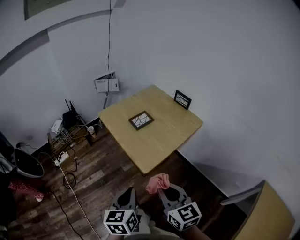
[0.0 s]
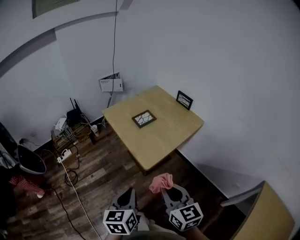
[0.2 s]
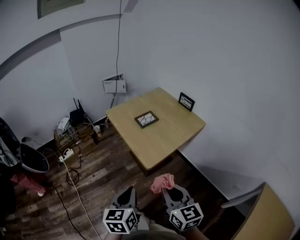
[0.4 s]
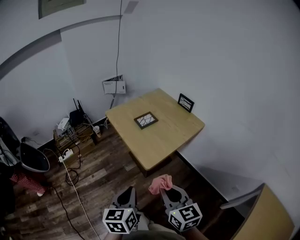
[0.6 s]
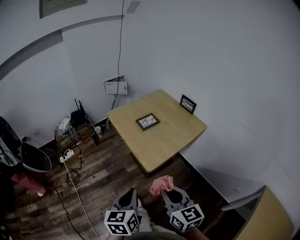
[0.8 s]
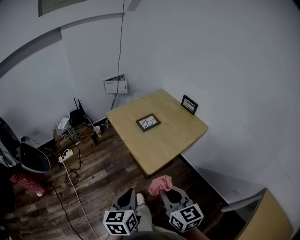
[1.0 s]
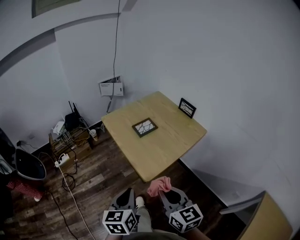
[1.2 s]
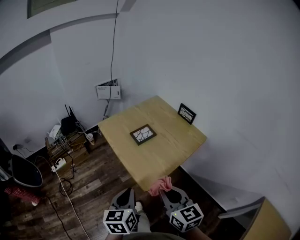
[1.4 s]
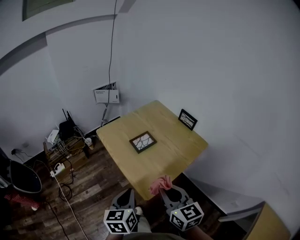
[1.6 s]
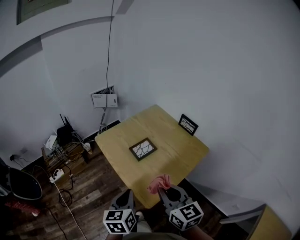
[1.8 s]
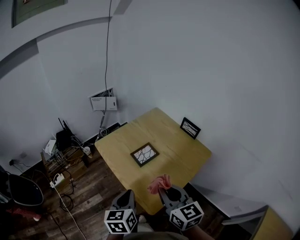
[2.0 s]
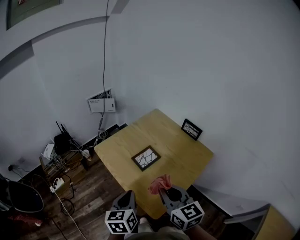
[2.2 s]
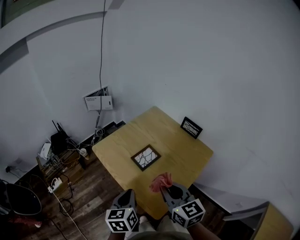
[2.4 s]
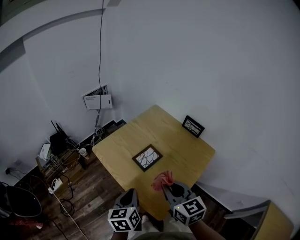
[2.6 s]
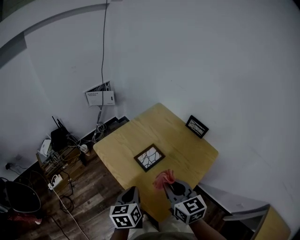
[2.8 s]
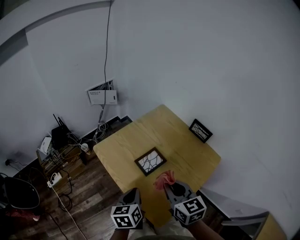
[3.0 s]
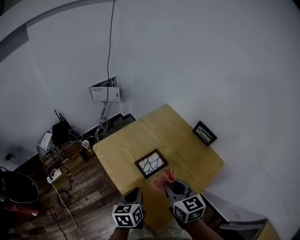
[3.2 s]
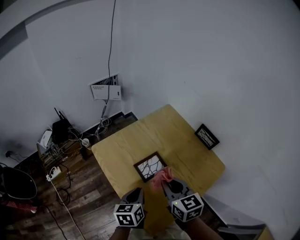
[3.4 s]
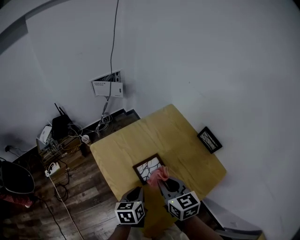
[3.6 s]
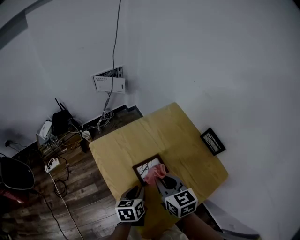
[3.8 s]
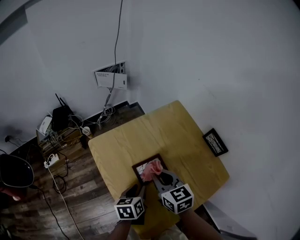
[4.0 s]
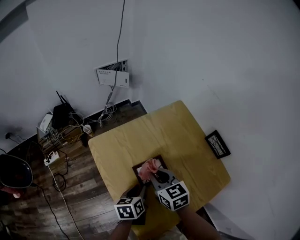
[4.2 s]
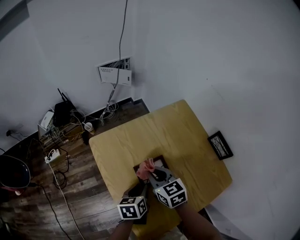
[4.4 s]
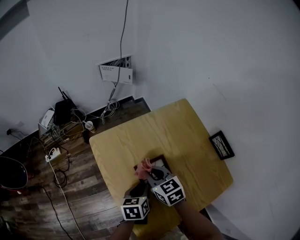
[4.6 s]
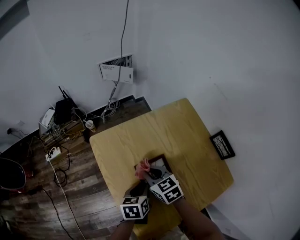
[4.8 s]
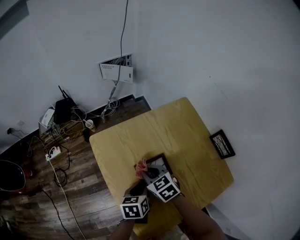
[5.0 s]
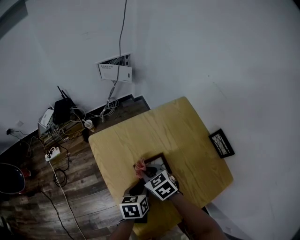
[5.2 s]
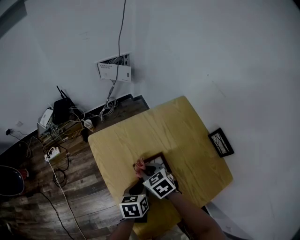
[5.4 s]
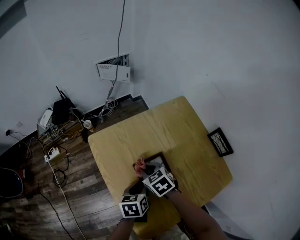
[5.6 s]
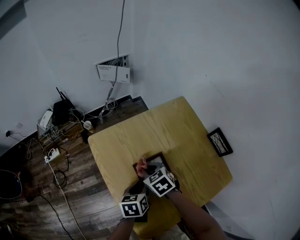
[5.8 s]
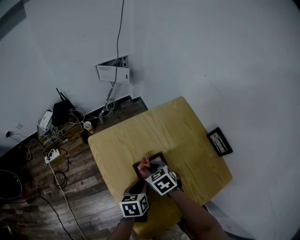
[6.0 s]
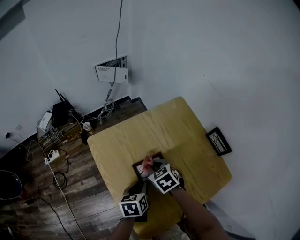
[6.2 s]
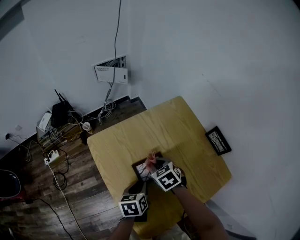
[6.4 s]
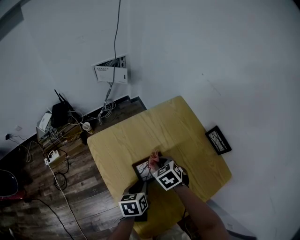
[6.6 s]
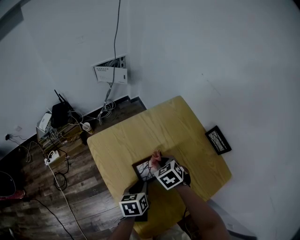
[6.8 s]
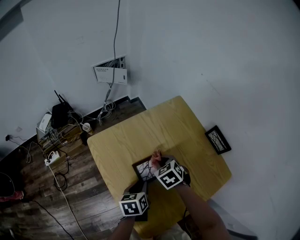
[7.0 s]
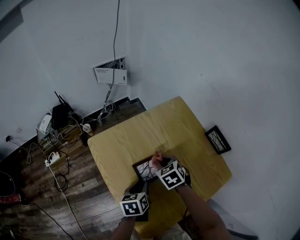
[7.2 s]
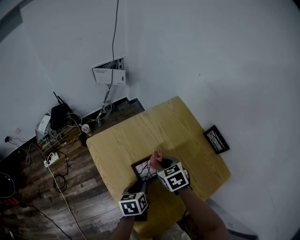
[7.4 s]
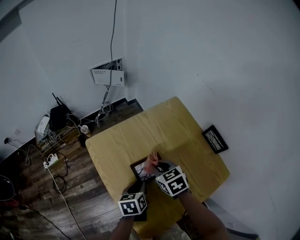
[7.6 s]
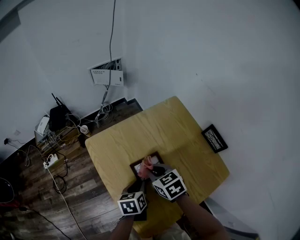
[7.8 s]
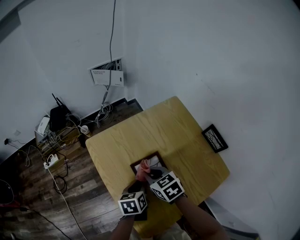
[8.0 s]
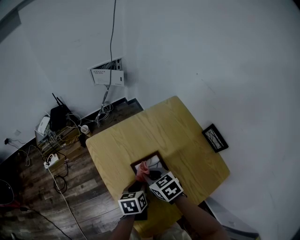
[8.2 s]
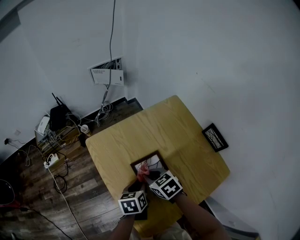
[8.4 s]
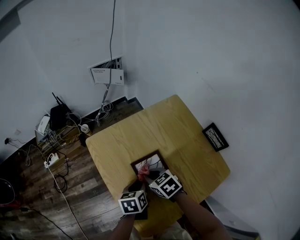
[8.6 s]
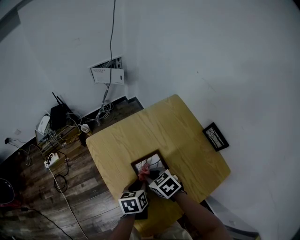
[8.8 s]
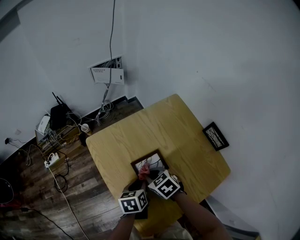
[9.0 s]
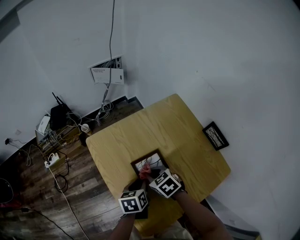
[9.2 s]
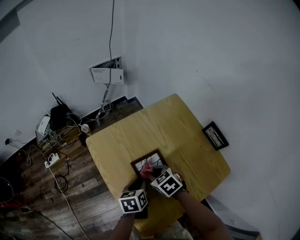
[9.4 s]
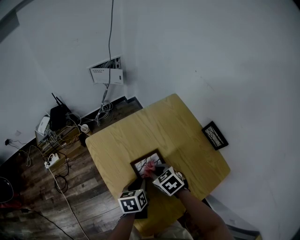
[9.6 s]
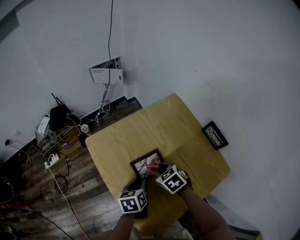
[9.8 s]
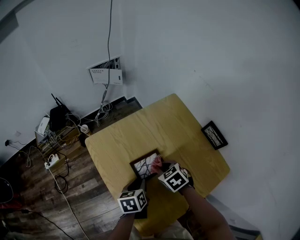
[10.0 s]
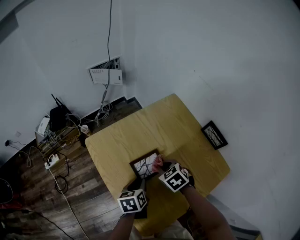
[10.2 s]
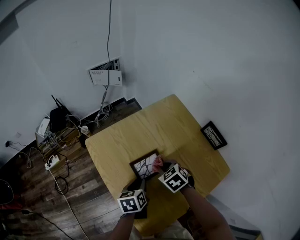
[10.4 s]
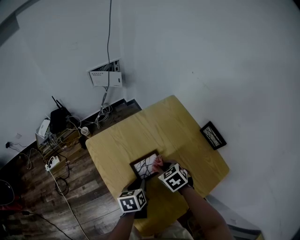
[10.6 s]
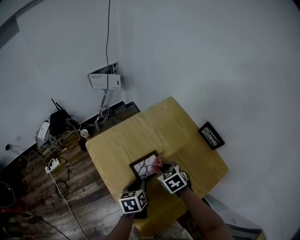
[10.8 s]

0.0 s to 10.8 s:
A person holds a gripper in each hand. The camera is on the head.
0.0 to 1.6 s: The two grippers go some 15 cm forward.
1.6 to 3.0 s: The right gripper is displaced forward by approximately 20 cm, while the left gripper moves forward and downward, some 20 cm.
3.0 to 4.6 s: The left gripper is displaced downward, forward and to the right by roughly 15 cm, and opens its fingers. The right gripper is displaced forward and downward by about 20 cm, and turns by about 30 degrees.
4.6 to 6.2 s: The right gripper moves roughly 5 cm, and swivels about 20 degrees.
6.2 to 7.8 s: The right gripper moves about 5 cm.
7.8 to 9.2 s: The right gripper ends up some 5 cm from where it was.
9.2 to 10.8 s: The right gripper travels to the right by approximately 5 cm.

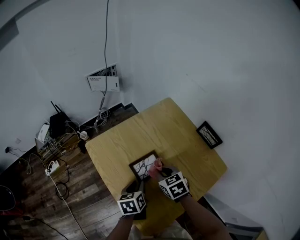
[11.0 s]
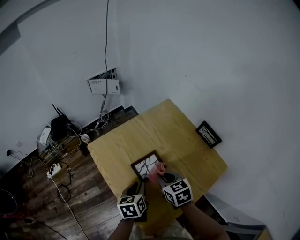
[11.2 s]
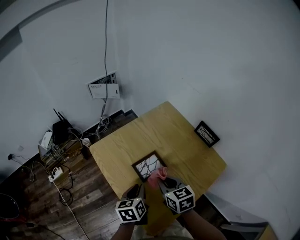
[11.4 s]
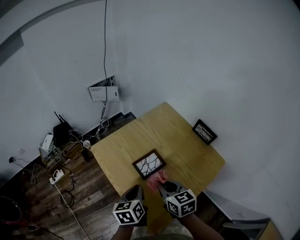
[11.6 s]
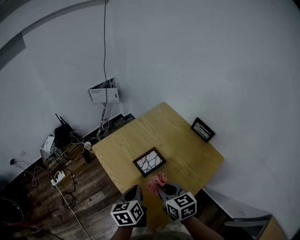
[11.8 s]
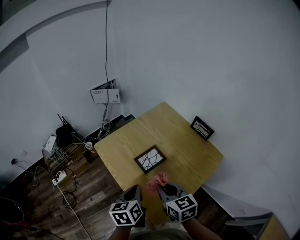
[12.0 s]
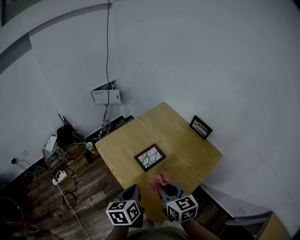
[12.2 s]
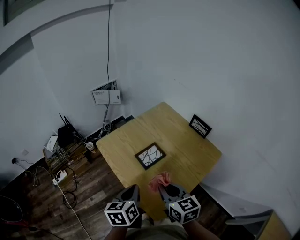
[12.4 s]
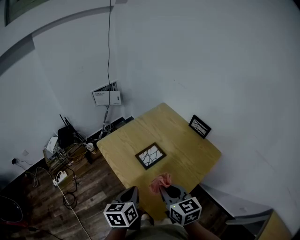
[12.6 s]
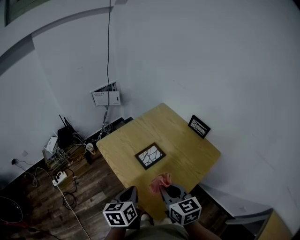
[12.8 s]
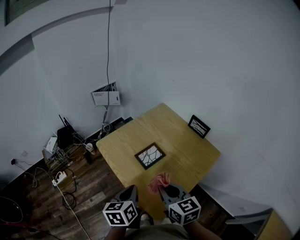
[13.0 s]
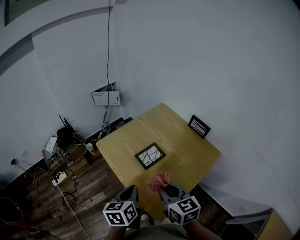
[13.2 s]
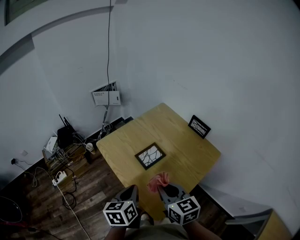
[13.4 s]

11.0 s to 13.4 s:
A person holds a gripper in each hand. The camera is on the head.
11.0 to 12.2 s: The left gripper travels upward and backward by about 15 cm, and closes up. The right gripper goes about 20 cm backward and upward, and rotates about 30 degrees.
12.2 to 13.4 s: The grippers stay close to where they were, moving slightly.

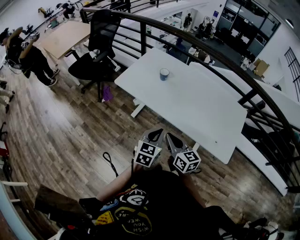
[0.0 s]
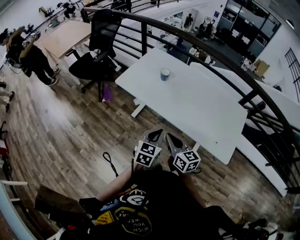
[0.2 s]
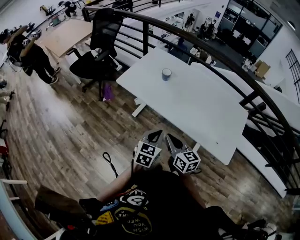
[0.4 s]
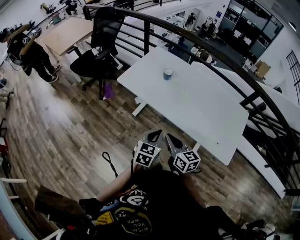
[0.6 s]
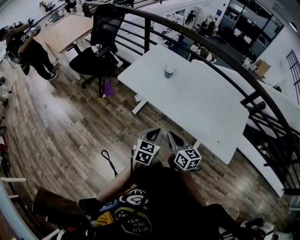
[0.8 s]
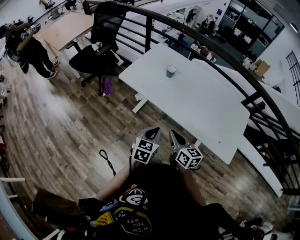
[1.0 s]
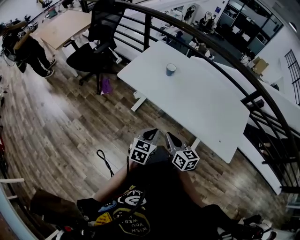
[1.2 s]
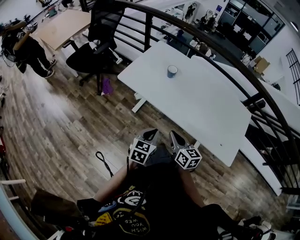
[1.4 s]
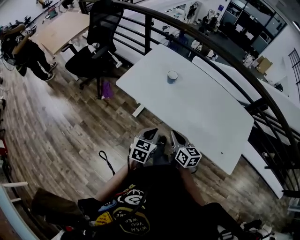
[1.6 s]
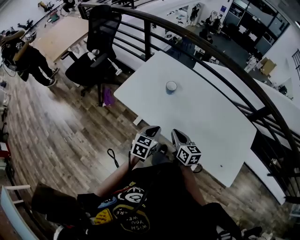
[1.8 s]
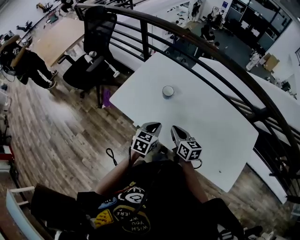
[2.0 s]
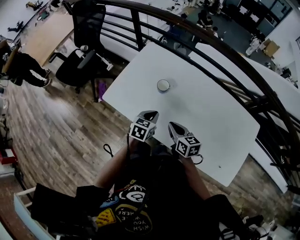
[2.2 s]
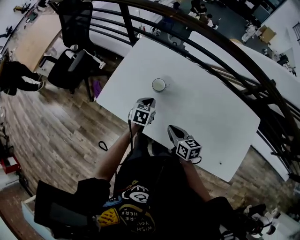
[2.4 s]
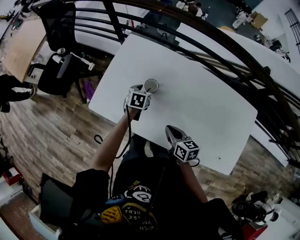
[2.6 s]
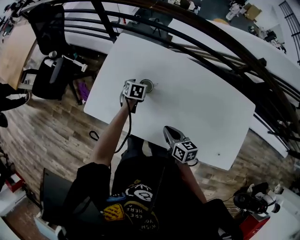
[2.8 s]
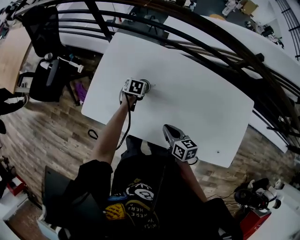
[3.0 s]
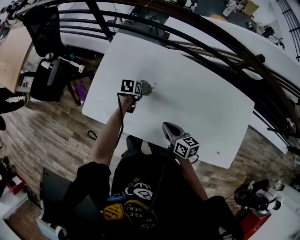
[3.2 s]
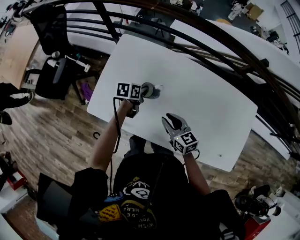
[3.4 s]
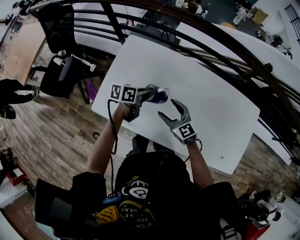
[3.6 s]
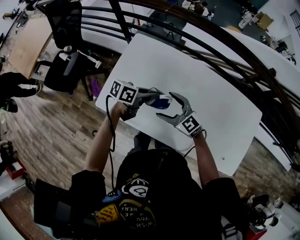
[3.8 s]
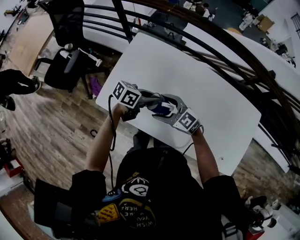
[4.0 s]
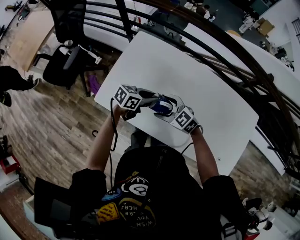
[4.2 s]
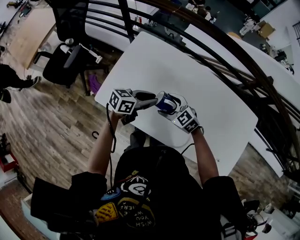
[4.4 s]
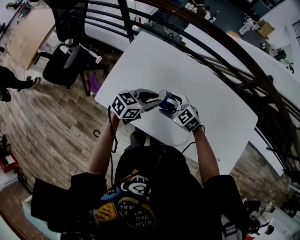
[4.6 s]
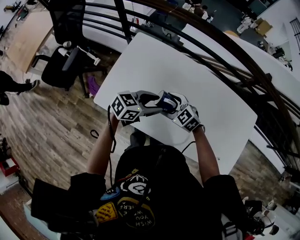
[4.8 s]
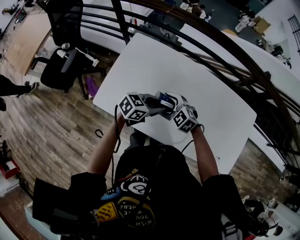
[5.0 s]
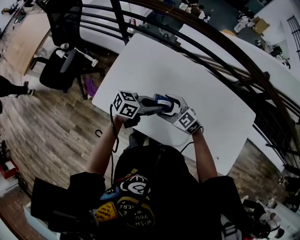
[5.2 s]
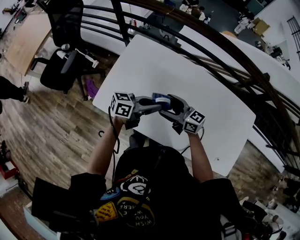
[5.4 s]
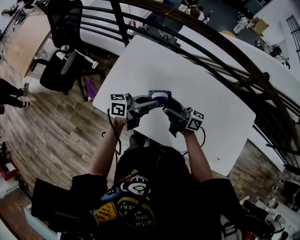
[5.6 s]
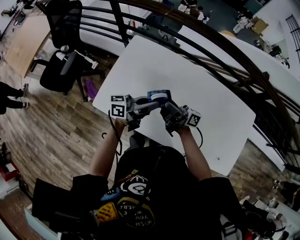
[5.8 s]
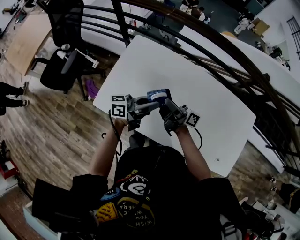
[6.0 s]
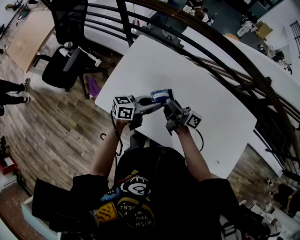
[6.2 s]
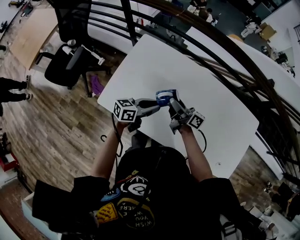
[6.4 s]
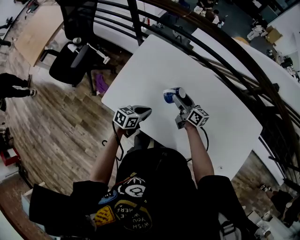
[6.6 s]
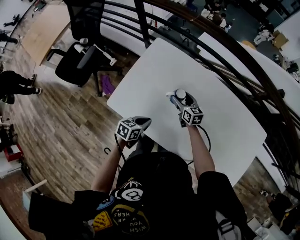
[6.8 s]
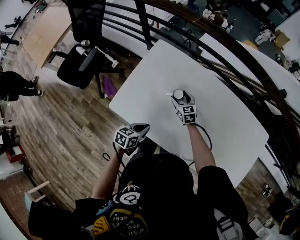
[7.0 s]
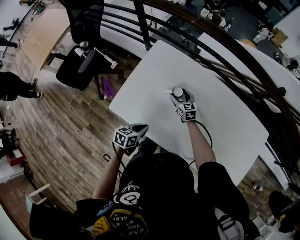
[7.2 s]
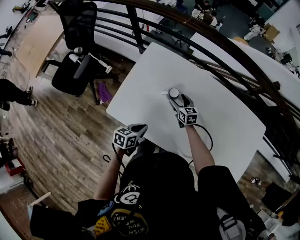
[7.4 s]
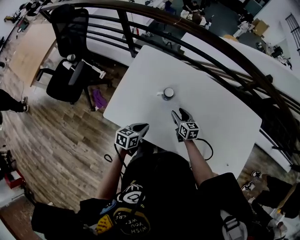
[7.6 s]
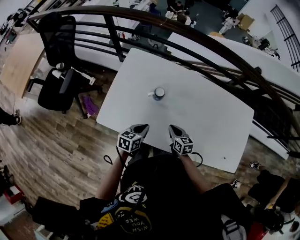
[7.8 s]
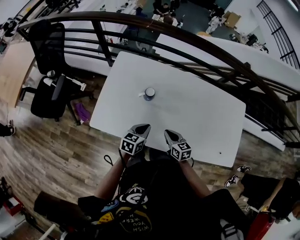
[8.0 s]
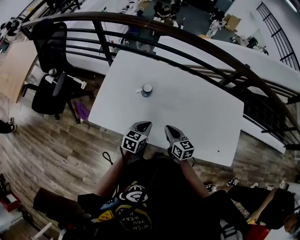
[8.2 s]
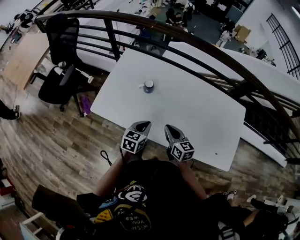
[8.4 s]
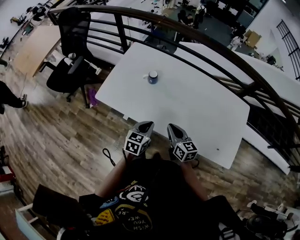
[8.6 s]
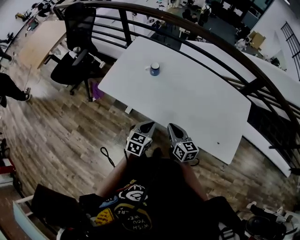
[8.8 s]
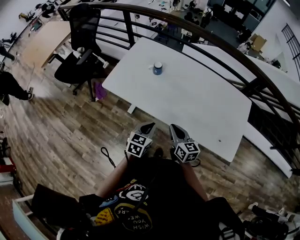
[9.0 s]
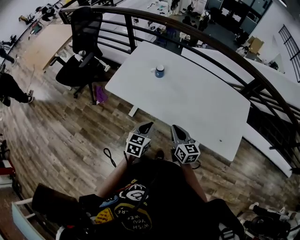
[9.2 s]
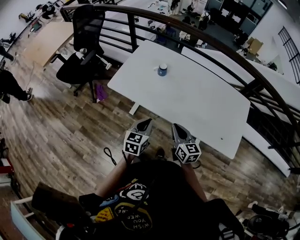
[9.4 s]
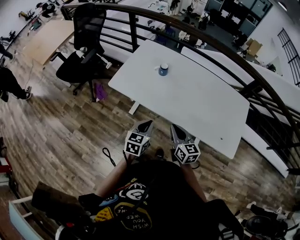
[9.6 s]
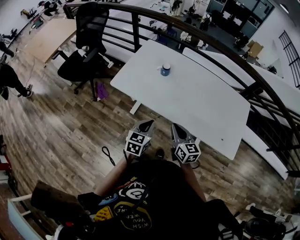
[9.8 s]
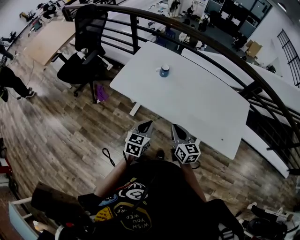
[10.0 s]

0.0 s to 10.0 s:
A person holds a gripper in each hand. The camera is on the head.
0.0 to 1.4 s: The left gripper travels to the left and downward by approximately 10 cm. Meanwhile the right gripper shifts some 10 cm downward and forward.
1.4 to 2.8 s: The left gripper goes approximately 60 cm forward, rotates about 30 degrees, and opens, while the right gripper moves forward, about 30 cm, and changes its angle by some 20 degrees.
2.8 to 4.2 s: The right gripper ends up some 15 cm from where it was, twists some 60 degrees counterclockwise, seen from behind, and opens its fingers, while the left gripper goes roughly 15 cm upward, points its fingers about 30 degrees further upward, and closes its fingers.
4.2 to 5.8 s: The grippers both shift upward by some 10 cm. The left gripper tilts its fingers some 40 degrees upward, and opens, then closes again; the right gripper points its fingers some 60 degrees further upward.
5.8 to 7.2 s: The left gripper travels downward, to the left and backward by approximately 25 cm, and points its fingers some 50 degrees further downward. The right gripper shifts approximately 25 cm downward and forward, and tips its fingers downward by some 60 degrees.
7.2 to 8.6 s: The right gripper moves backward, to the right and upward, roughly 40 cm, changes its angle by about 20 degrees, and closes up; the left gripper travels to the right, backward and upward by approximately 25 cm, and turns by about 20 degrees.
8.6 to 10.0 s: The left gripper heads backward, to the left and upward, covering some 15 cm; the right gripper goes approximately 15 cm backward, upward and to the left.
